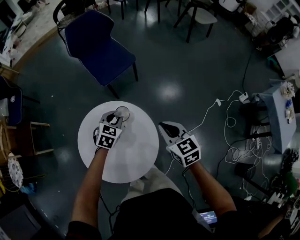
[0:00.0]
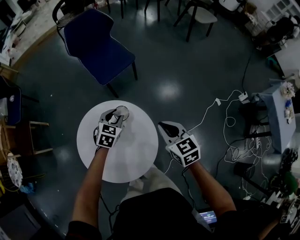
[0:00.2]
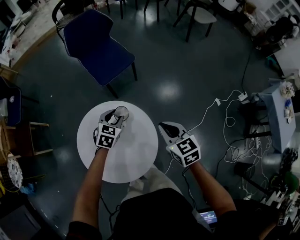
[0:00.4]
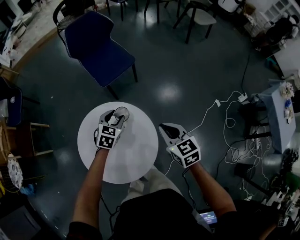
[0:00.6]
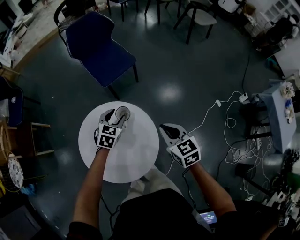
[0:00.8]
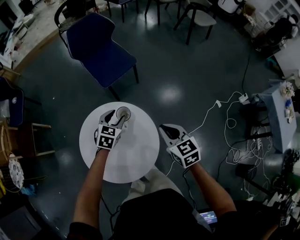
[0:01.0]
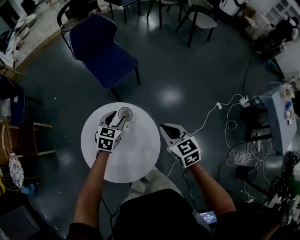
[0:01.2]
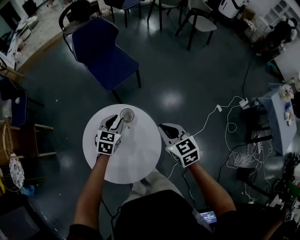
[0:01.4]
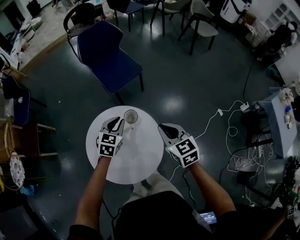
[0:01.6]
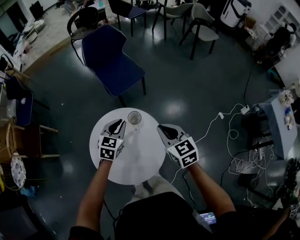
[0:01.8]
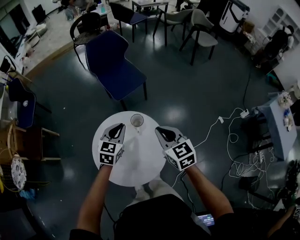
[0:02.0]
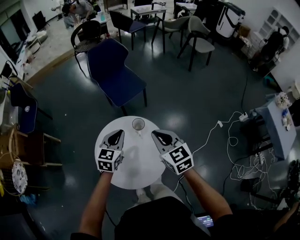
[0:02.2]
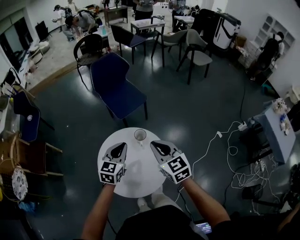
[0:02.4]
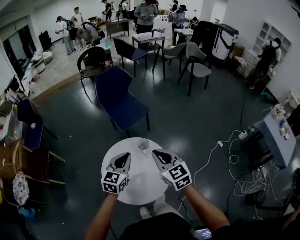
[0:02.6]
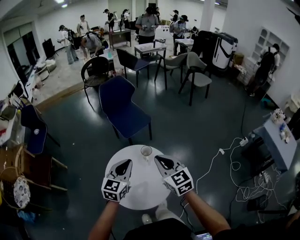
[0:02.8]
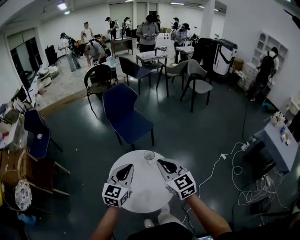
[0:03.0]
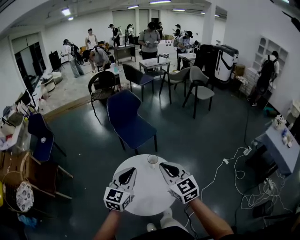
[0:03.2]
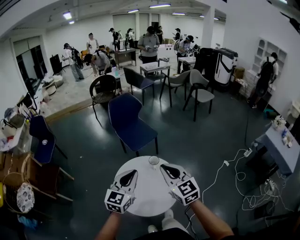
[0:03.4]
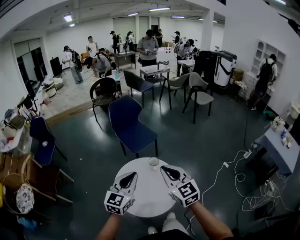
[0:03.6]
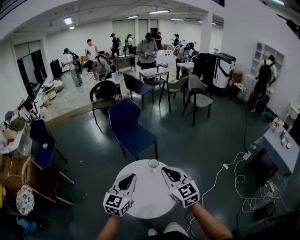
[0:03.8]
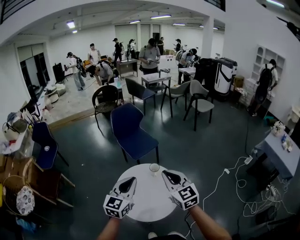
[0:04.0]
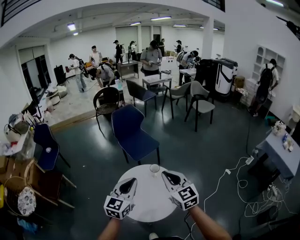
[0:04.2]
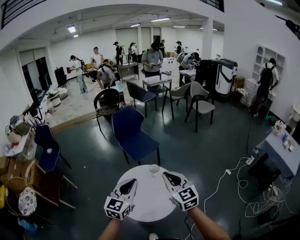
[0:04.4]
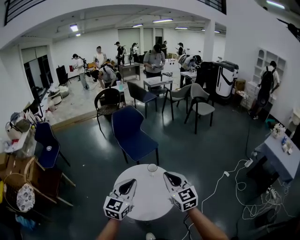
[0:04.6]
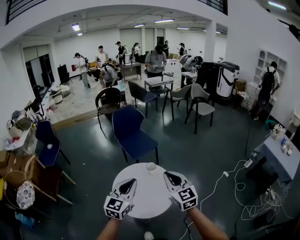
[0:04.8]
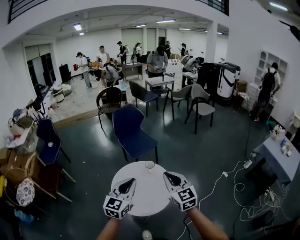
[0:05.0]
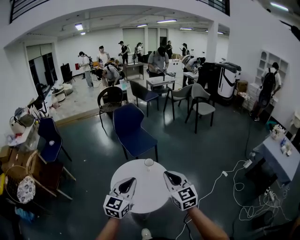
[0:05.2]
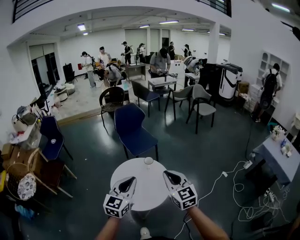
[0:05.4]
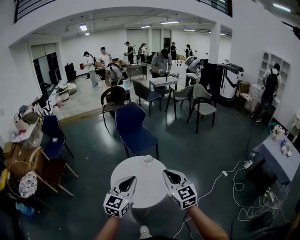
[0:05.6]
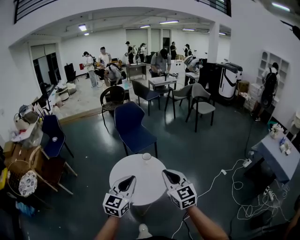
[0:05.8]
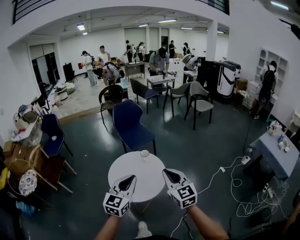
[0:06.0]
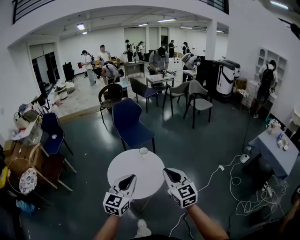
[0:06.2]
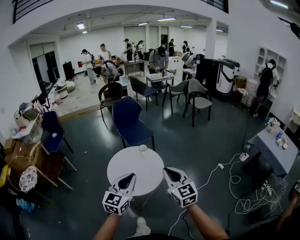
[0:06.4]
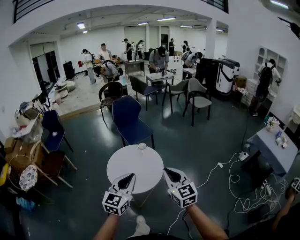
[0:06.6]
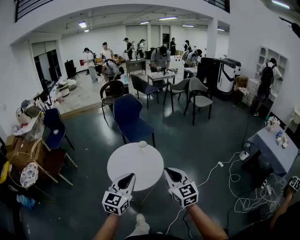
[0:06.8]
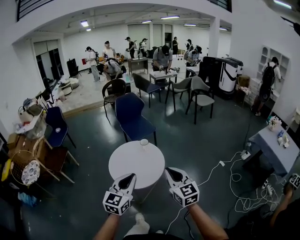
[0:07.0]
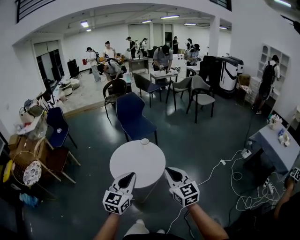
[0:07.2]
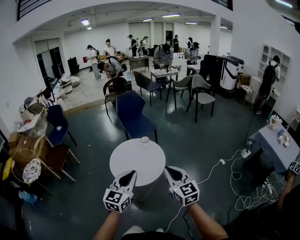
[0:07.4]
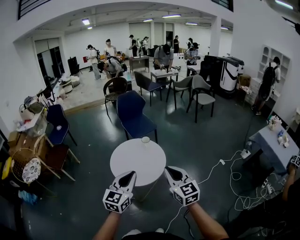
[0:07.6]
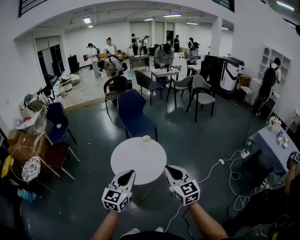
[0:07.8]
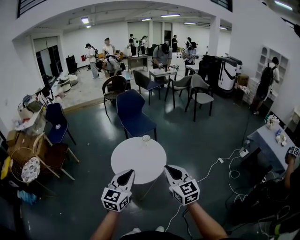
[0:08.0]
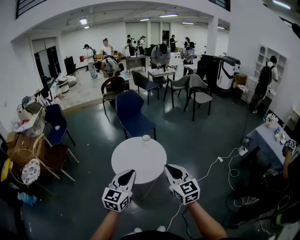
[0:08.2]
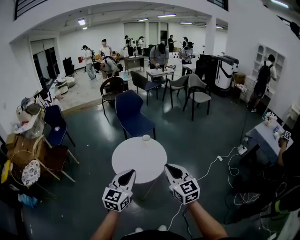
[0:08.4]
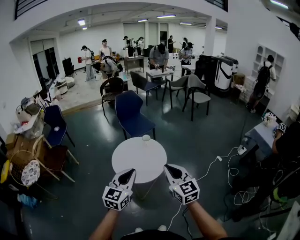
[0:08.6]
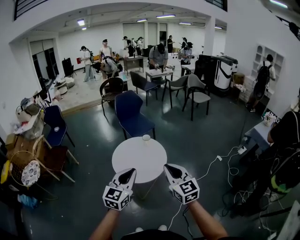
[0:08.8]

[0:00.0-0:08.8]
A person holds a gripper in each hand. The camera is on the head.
0:00.0 to 0:01.4: The left gripper moves upward, some 5 cm, and opens and closes again.
0:01.4 to 0:03.0: The right gripper goes about 30 cm upward, to the left and backward, and rotates some 20 degrees. Meanwhile the left gripper travels upward, backward and to the left by about 35 cm, changes its angle by roughly 30 degrees, and closes.
0:03.0 to 0:04.4: The left gripper moves backward and upward, roughly 15 cm; the right gripper shifts approximately 10 cm backward.
0:04.4 to 0:05.8: The grippers both shift backward and to the right by roughly 20 cm.
0:05.8 to 0:07.4: The two grippers go approximately 15 cm backward.
0:07.4 to 0:08.8: The grippers both shift to the left by approximately 5 cm.

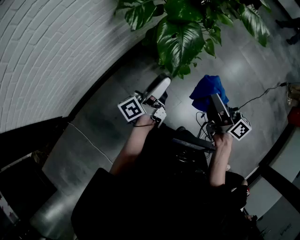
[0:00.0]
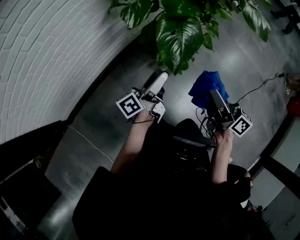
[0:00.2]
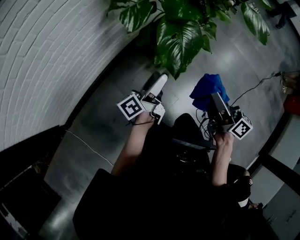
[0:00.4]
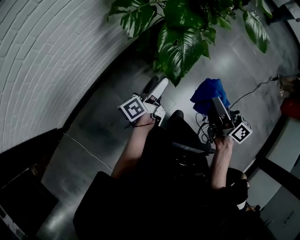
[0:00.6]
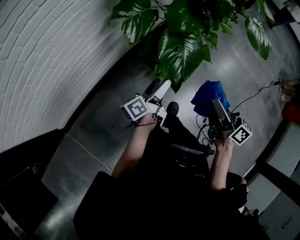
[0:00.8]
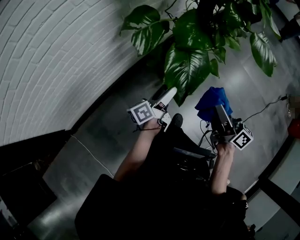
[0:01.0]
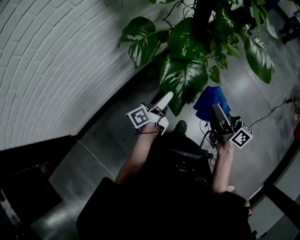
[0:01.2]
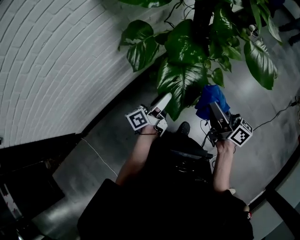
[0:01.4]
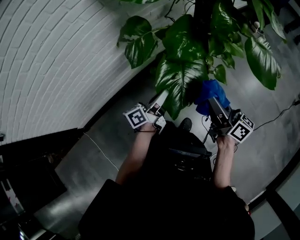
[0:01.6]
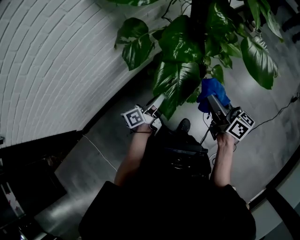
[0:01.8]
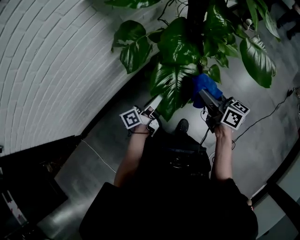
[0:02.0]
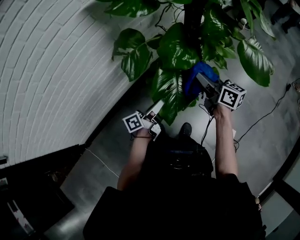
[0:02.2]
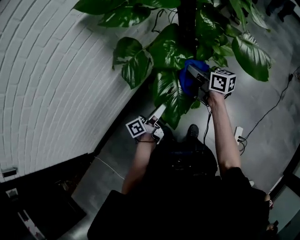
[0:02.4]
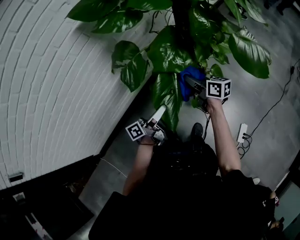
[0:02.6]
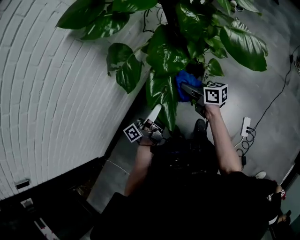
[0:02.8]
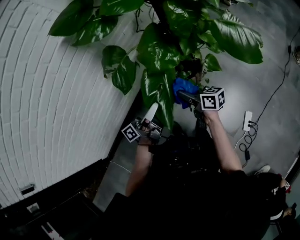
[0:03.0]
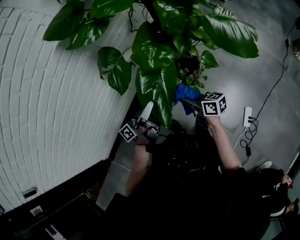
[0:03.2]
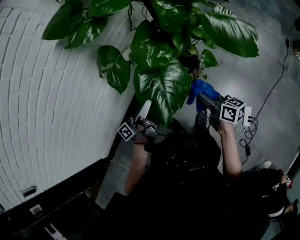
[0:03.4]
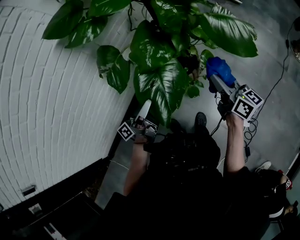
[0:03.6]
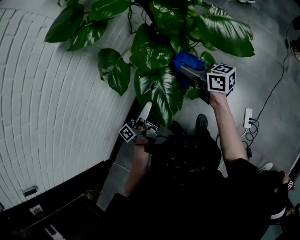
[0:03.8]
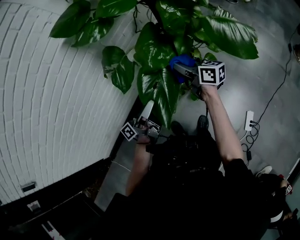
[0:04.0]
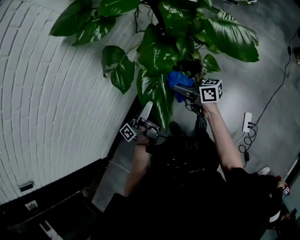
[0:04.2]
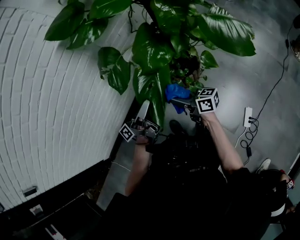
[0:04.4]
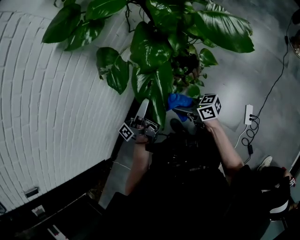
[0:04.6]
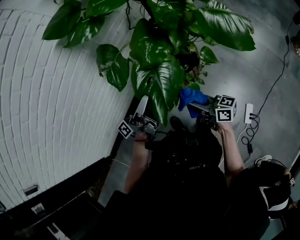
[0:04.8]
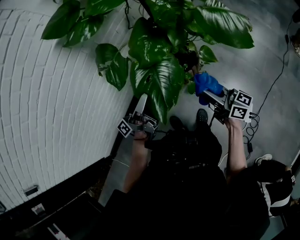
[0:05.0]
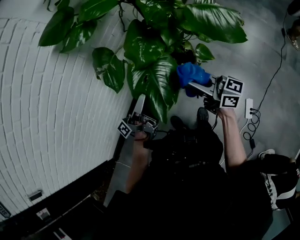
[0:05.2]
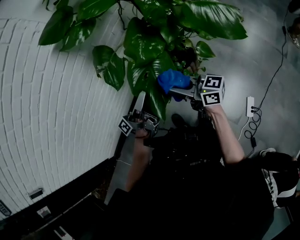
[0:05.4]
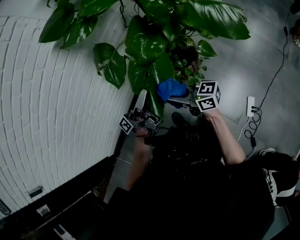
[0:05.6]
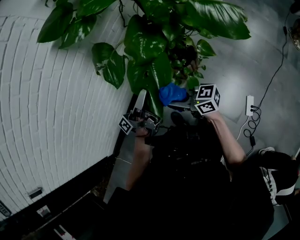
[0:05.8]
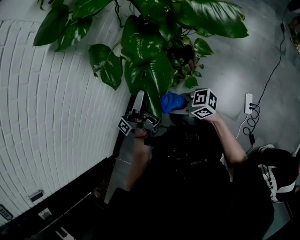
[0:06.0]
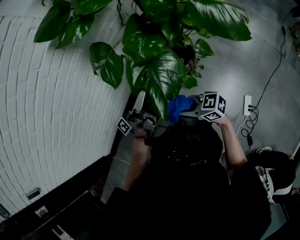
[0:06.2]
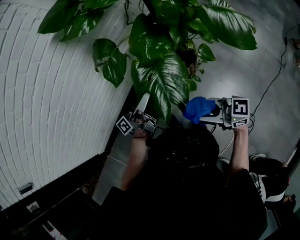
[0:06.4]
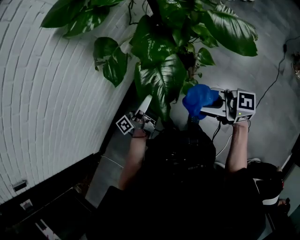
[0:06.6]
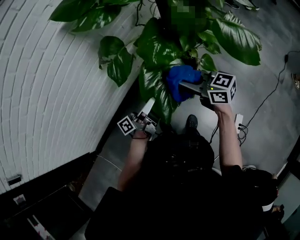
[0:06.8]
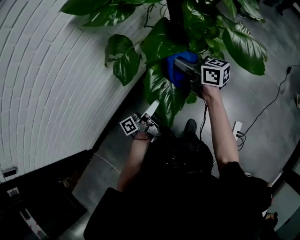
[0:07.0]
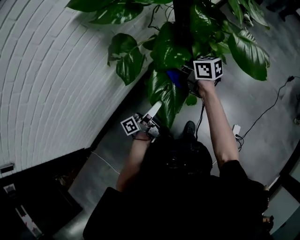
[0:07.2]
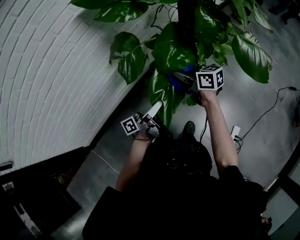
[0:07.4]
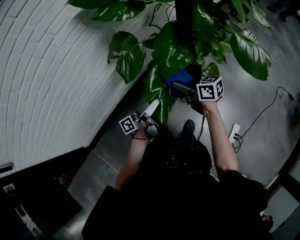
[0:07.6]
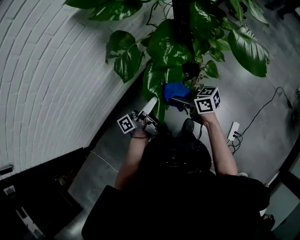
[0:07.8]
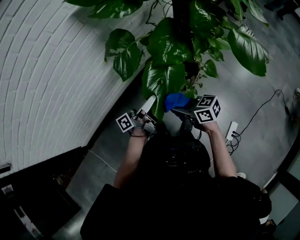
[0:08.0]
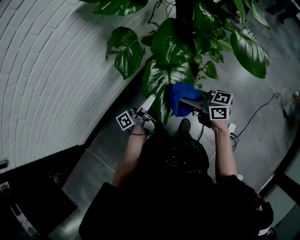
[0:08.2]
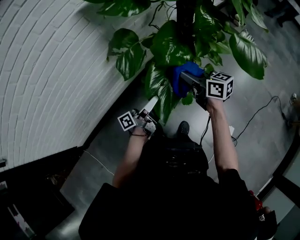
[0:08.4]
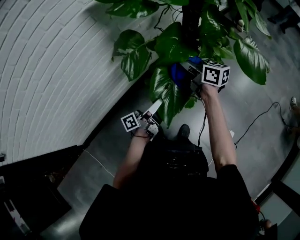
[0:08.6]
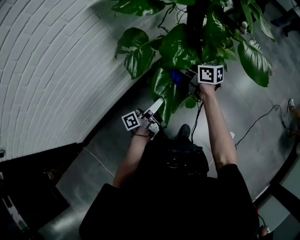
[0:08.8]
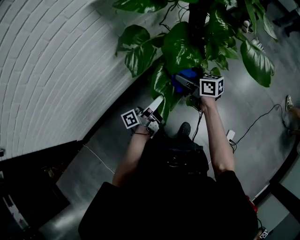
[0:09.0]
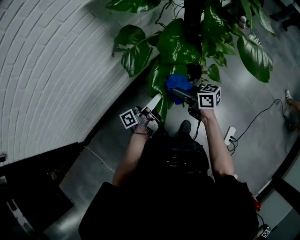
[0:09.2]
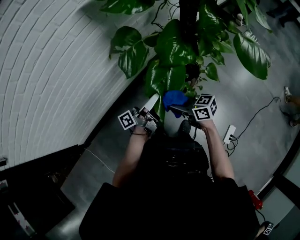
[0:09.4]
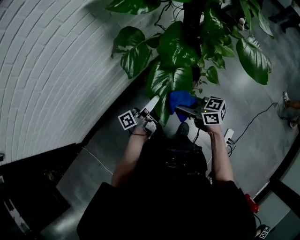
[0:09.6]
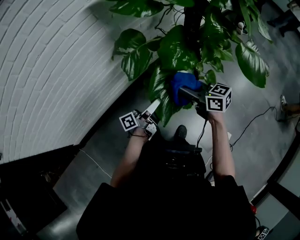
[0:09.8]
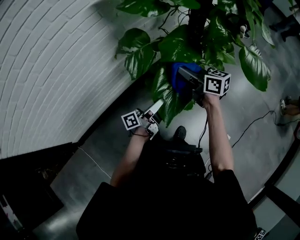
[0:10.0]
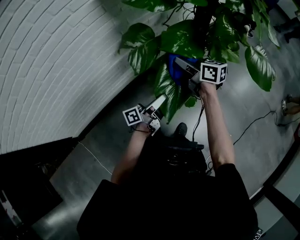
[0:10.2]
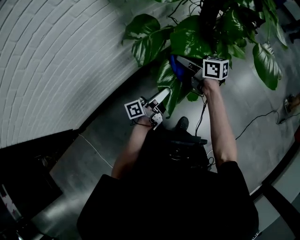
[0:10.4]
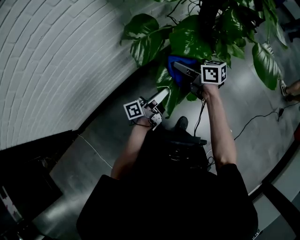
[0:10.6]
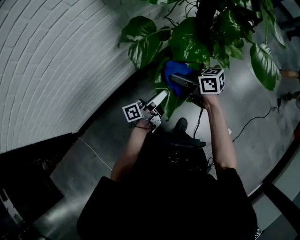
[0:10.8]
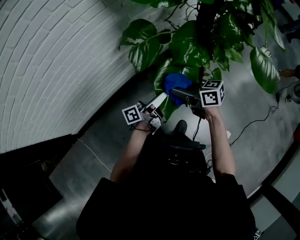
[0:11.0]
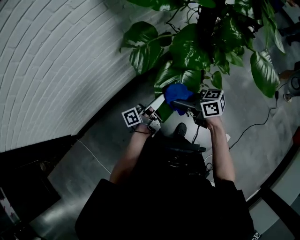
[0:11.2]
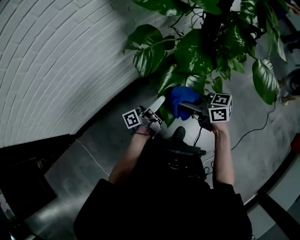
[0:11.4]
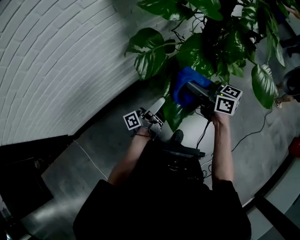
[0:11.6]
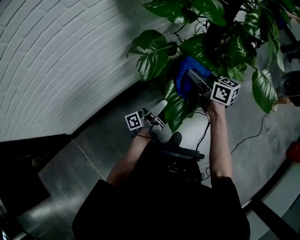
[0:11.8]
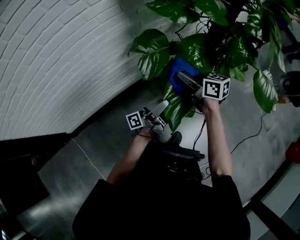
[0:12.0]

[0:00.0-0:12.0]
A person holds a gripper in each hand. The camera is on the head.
0:00.0 to 0:01.6: The right gripper ends up roughly 20 cm from where it was.
0:01.6 to 0:03.0: The right gripper moves downward, roughly 15 cm.
0:03.0 to 0:04.4: The right gripper reaches approximately 10 cm upward, then returns.
0:04.4 to 0:06.0: The right gripper moves approximately 10 cm upward and comes back, and turns by some 30 degrees.
0:06.0 to 0:07.6: The right gripper goes upward and returns, approximately 15 cm each way, and rotates roughly 20 degrees.
0:07.6 to 0:09.0: The right gripper goes upward and returns, some 5 cm each way.
0:09.0 to 0:10.4: The right gripper reaches about 5 cm upward, then returns.

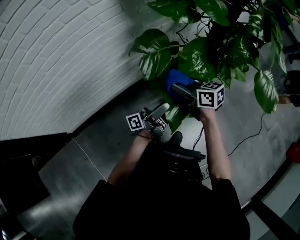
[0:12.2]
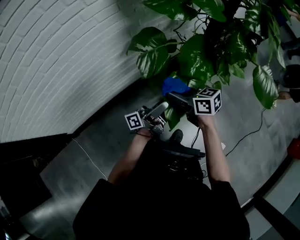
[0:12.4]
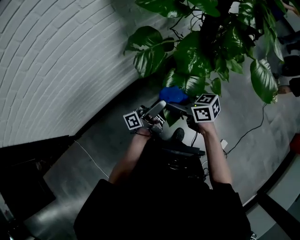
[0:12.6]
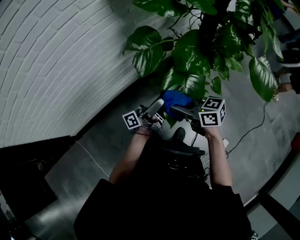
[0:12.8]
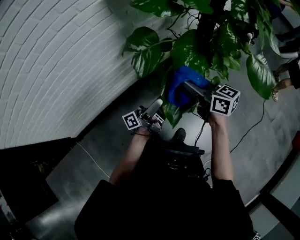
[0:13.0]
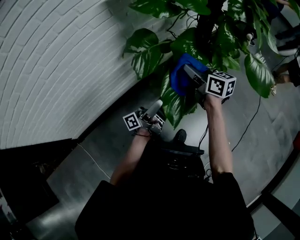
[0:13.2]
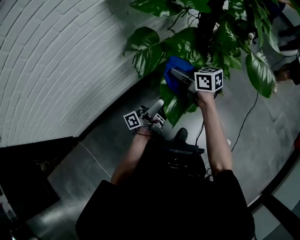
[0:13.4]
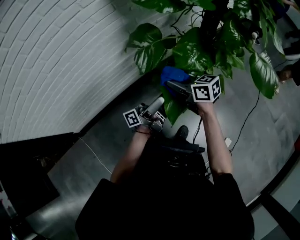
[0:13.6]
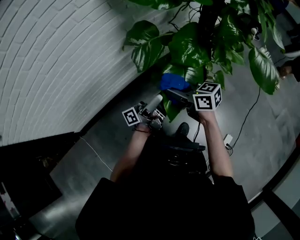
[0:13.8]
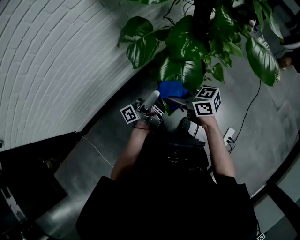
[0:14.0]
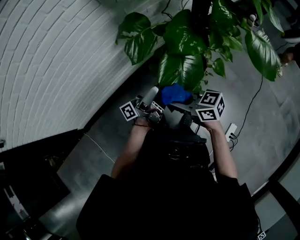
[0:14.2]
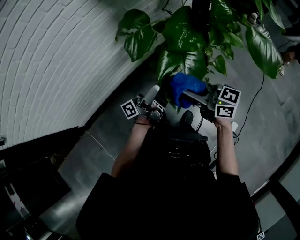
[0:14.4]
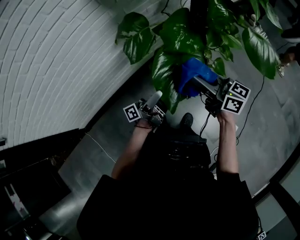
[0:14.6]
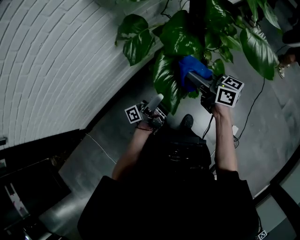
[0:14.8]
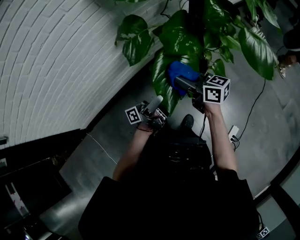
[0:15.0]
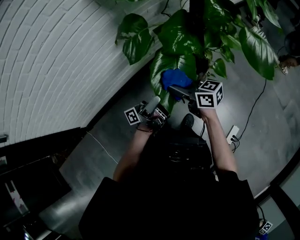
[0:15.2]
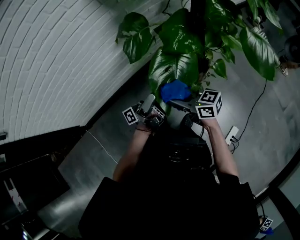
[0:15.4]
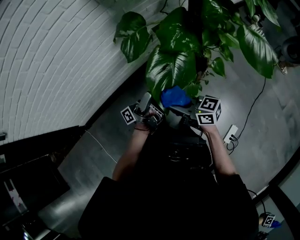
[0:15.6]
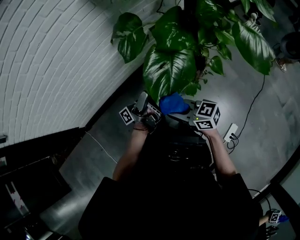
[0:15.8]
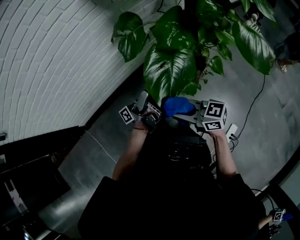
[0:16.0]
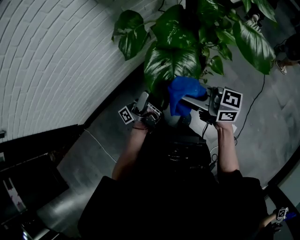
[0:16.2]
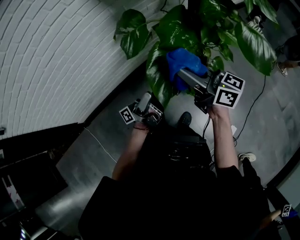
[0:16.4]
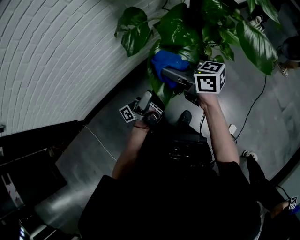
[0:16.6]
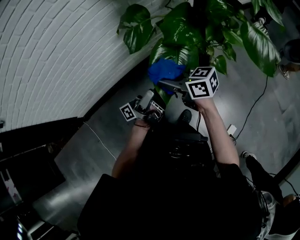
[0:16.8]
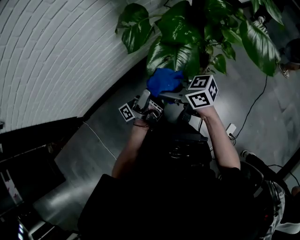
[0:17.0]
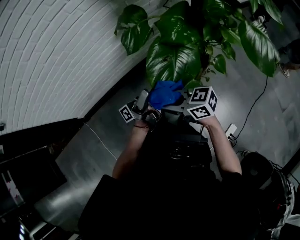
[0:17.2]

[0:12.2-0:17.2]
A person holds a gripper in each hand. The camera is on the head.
0:13.8 to 0:15.6: The right gripper ends up roughly 15 cm from where it was.
0:15.6 to 0:17.2: The right gripper reaches about 15 cm upward, then returns.
